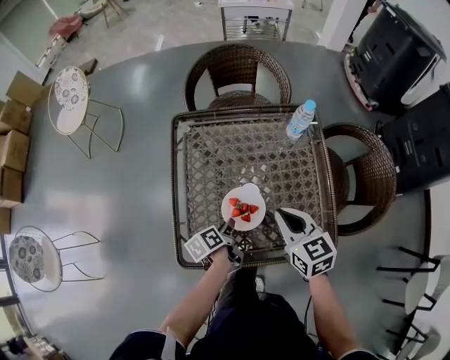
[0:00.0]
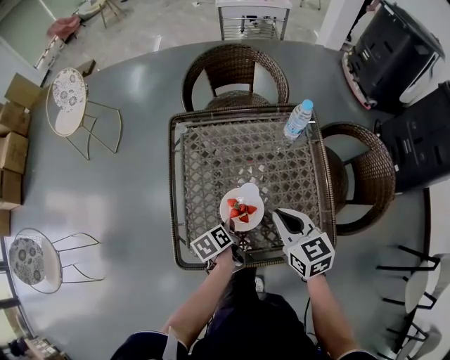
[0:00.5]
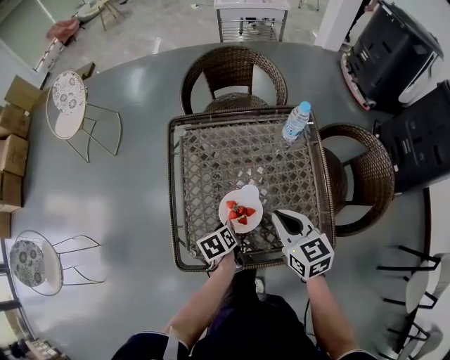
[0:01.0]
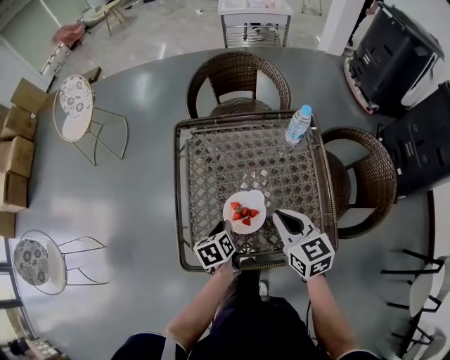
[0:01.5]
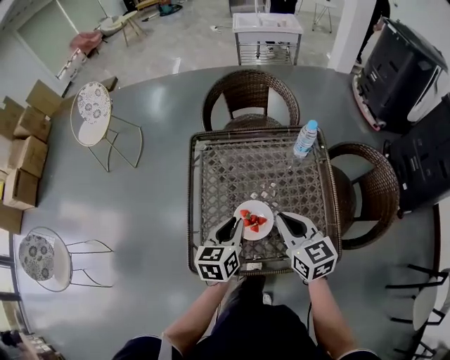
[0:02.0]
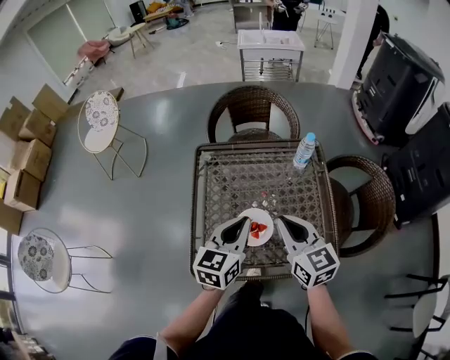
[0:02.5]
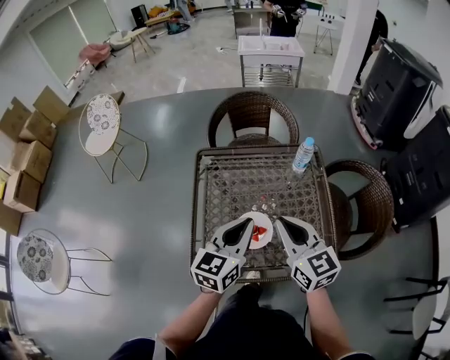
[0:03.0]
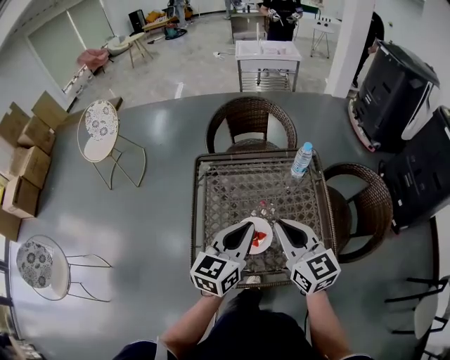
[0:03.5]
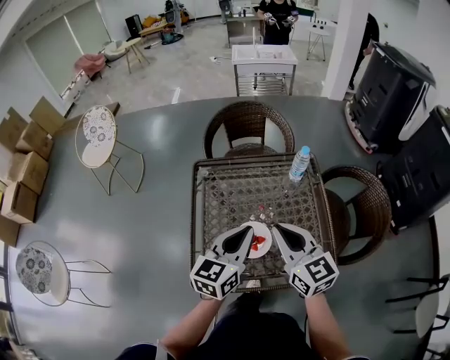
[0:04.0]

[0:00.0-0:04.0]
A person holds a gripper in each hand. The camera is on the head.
0:00.0 to 0:02.0: The left gripper goes approximately 15 cm upward, and rolls clockwise, seen from behind, by roughly 50 degrees.
0:02.0 to 0:04.0: The two grippers go about 10 cm upward. The left gripper turns by about 20 degrees.

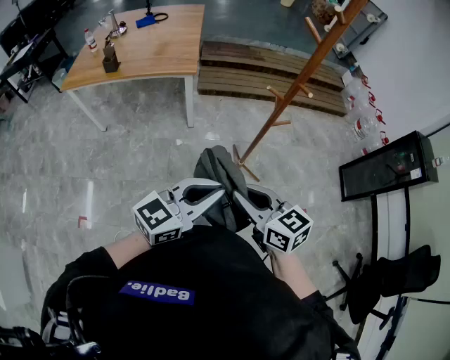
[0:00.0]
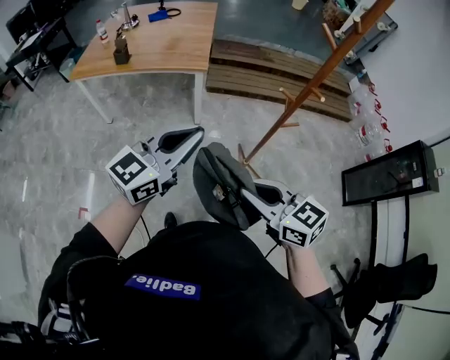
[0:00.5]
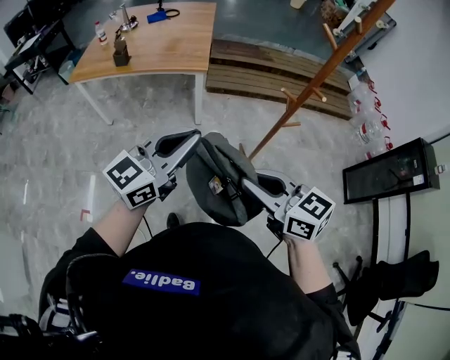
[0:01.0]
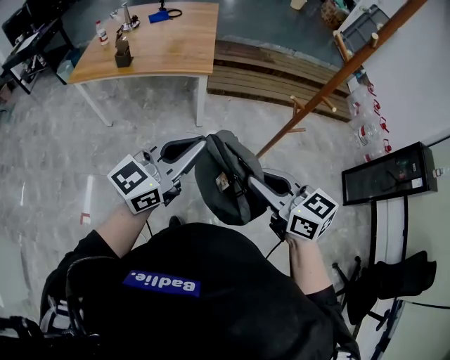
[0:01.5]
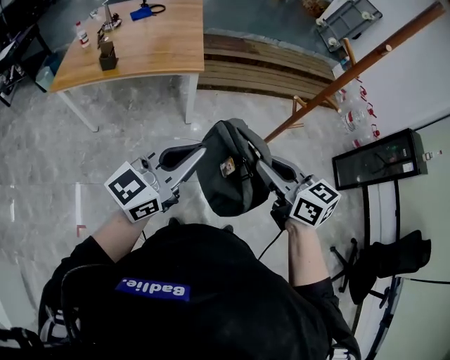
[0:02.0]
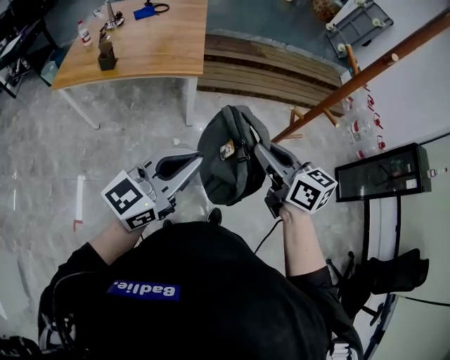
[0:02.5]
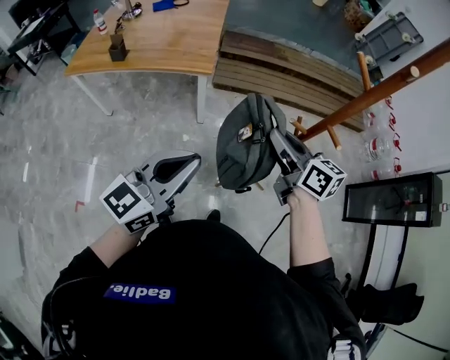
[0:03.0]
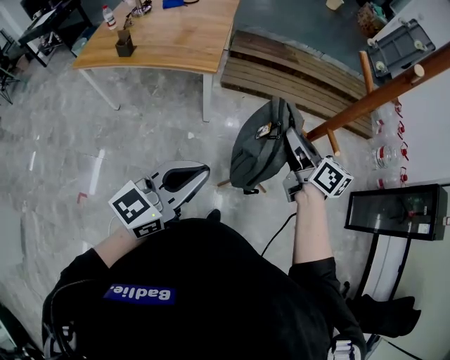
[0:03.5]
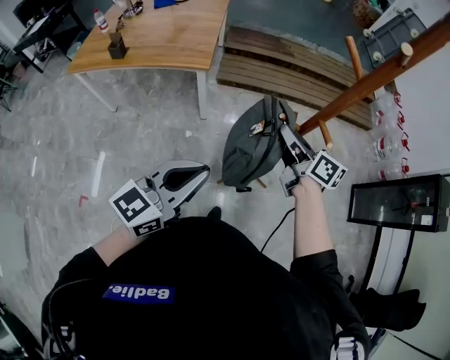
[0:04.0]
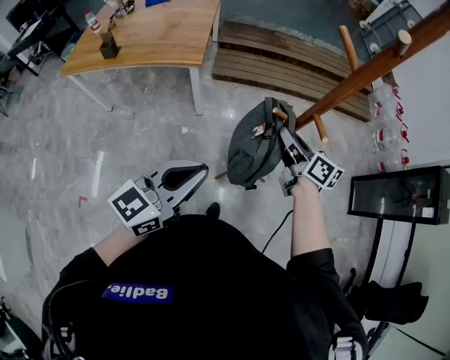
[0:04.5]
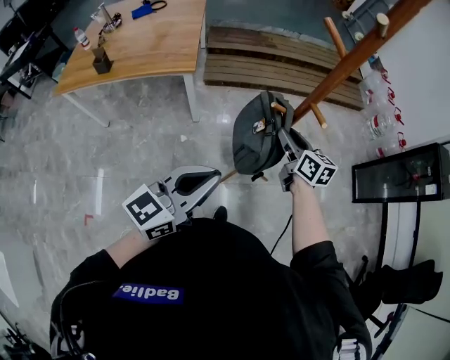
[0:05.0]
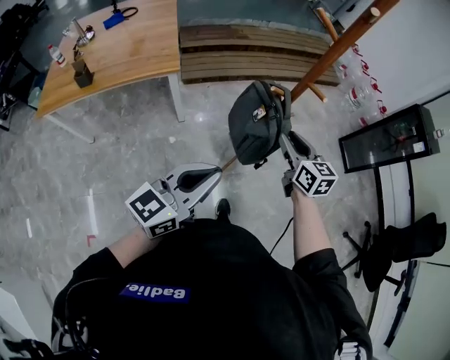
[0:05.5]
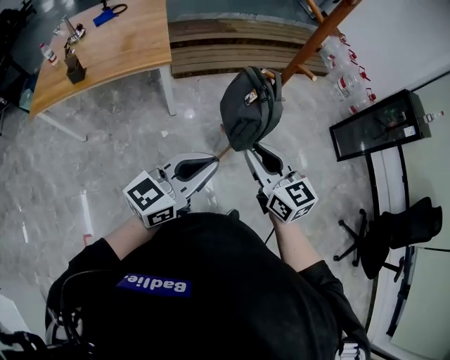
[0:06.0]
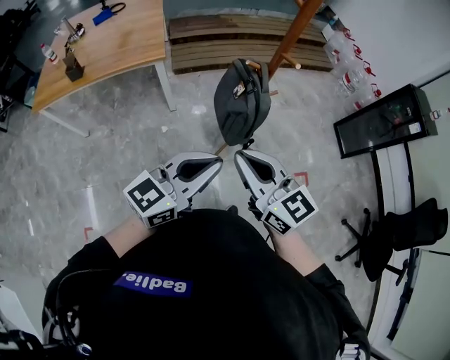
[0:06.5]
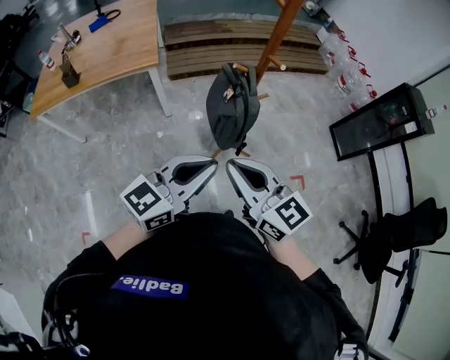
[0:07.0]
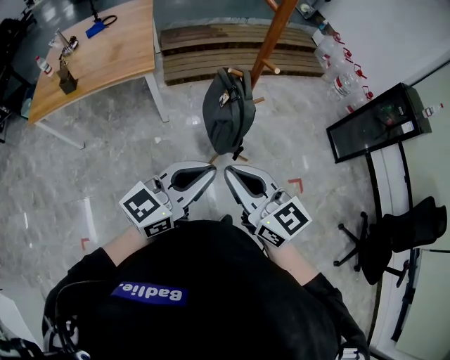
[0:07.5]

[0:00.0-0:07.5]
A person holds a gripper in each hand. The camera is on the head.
0:00.0 to 0:02.0: The right gripper goes some 15 cm forward, to the left and upward; the left gripper travels to the left and forward by approximately 20 cm.
0:02.0 to 0:04.0: The right gripper travels forward and to the right by about 30 cm, and swivels approximately 30 degrees; the left gripper shifts approximately 20 cm to the right.
0:04.0 to 0:05.5: The right gripper heads backward, covering approximately 10 cm, and rotates some 40 degrees. Meanwhile the left gripper heads backward, covering about 5 cm.
0:05.5 to 0:07.5: The right gripper heads backward and upward, covering some 20 cm, turns by roughly 30 degrees, and closes its fingers, while the left gripper moves to the right, roughly 10 cm.

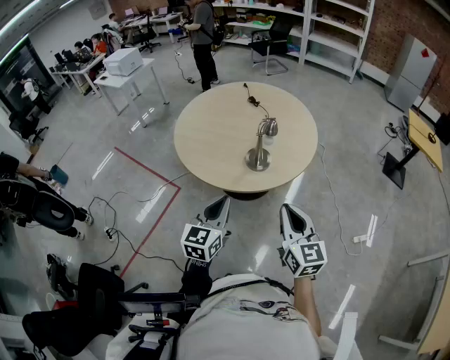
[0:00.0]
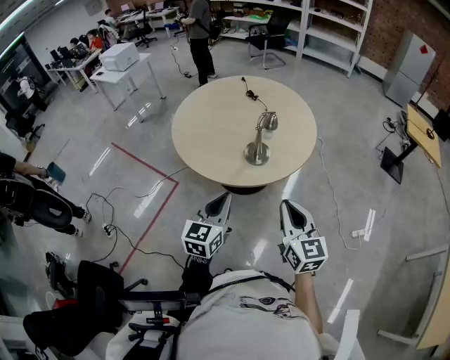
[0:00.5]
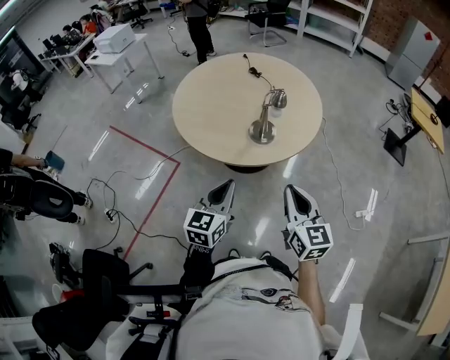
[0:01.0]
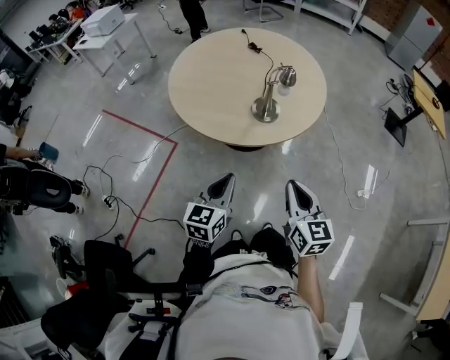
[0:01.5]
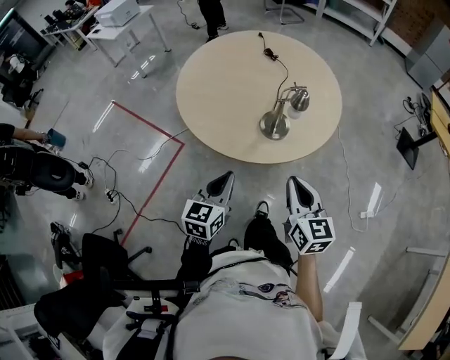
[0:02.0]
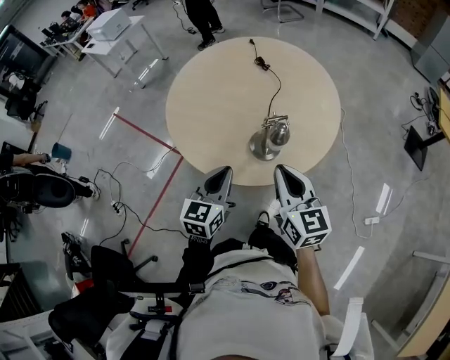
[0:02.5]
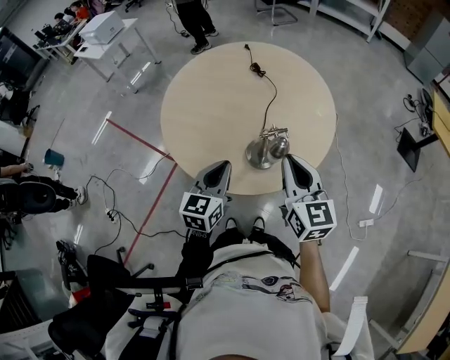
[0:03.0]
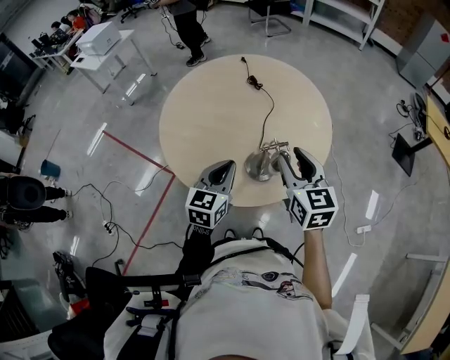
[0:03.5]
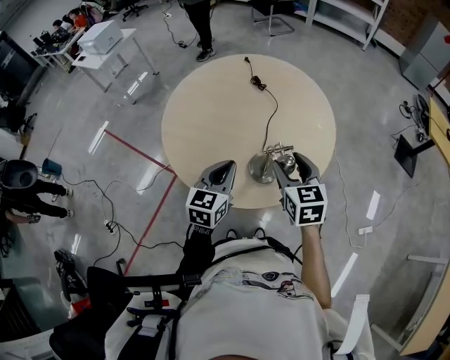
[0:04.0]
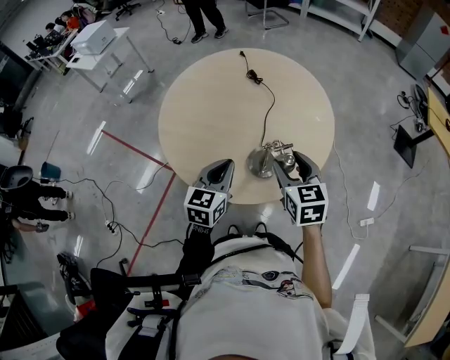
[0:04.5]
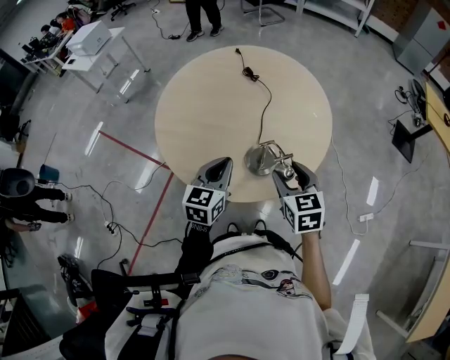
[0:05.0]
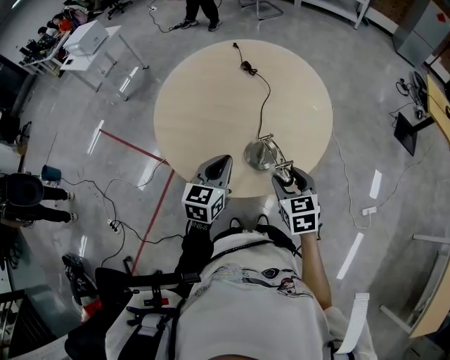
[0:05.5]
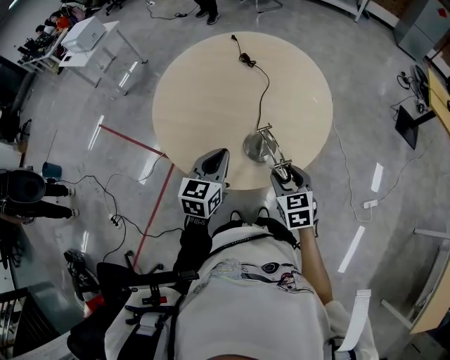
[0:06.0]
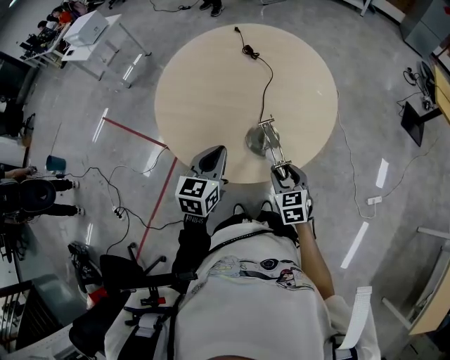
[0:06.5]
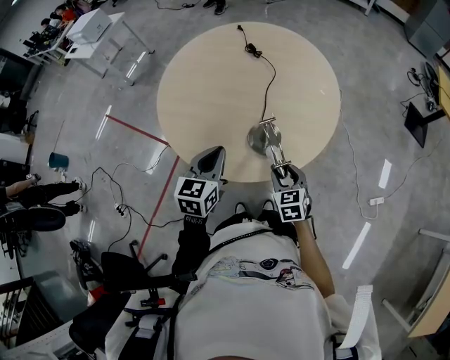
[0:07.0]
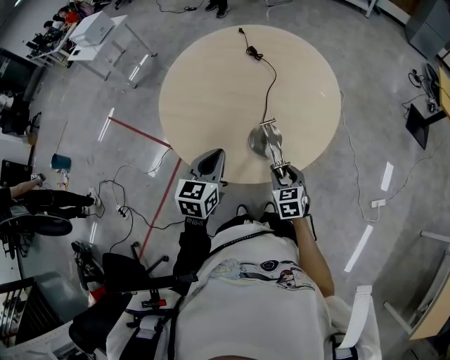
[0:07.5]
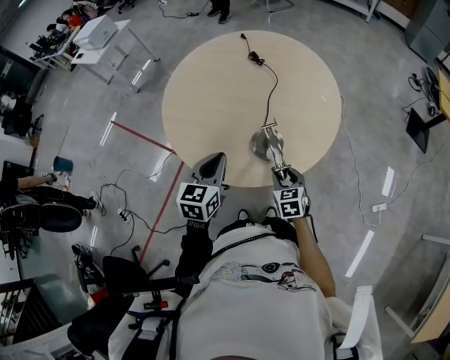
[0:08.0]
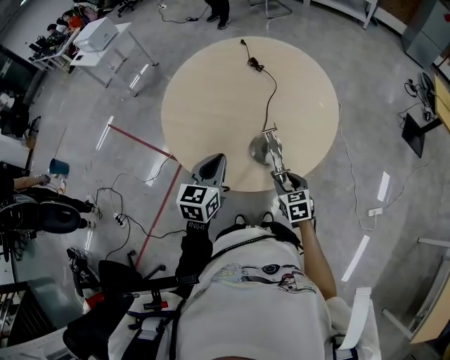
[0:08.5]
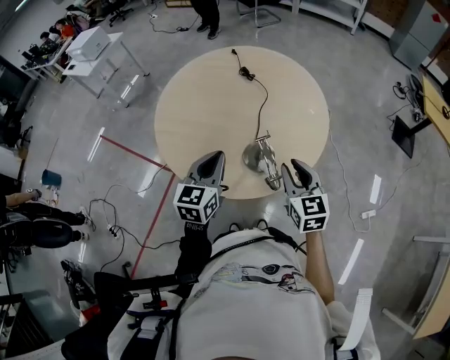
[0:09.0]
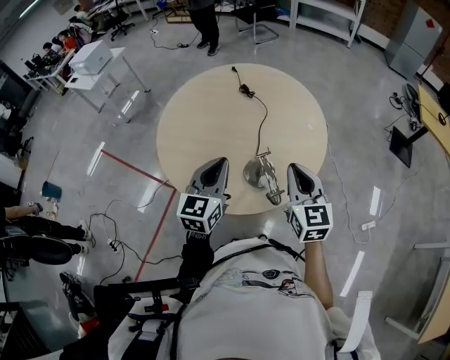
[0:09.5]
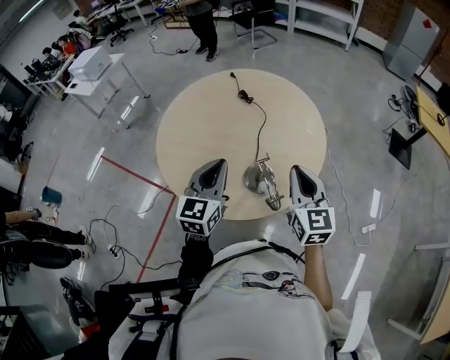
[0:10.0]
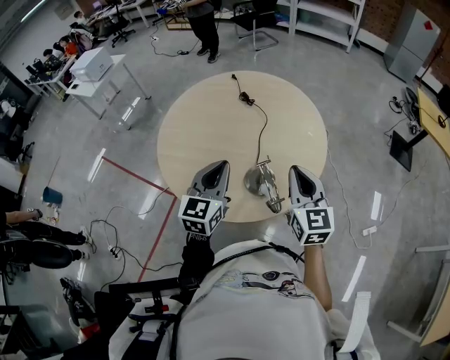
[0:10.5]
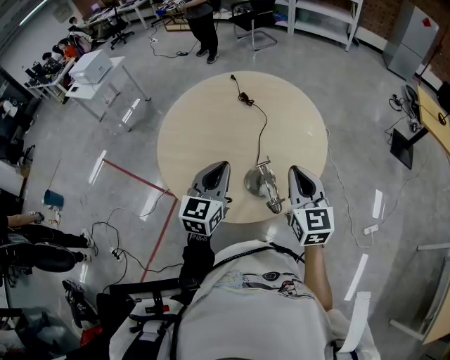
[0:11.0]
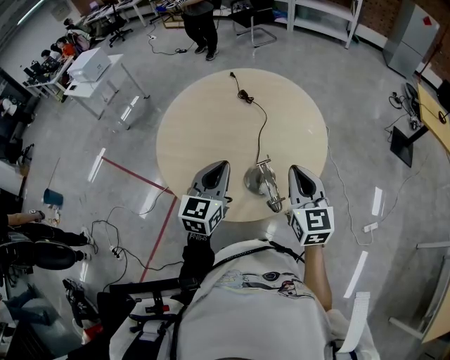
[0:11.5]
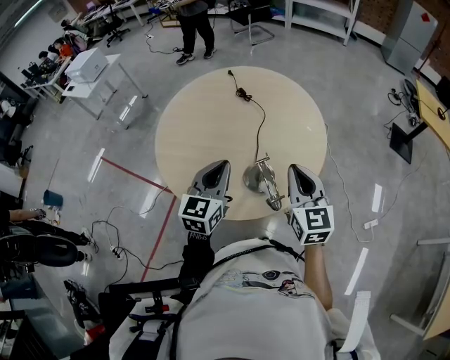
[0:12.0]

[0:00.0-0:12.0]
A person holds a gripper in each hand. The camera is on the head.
0:00.0 to 0:02.0: The right gripper heads forward and downward, covering about 10 cm. Meanwhile the left gripper shifts about 10 cm downward and forward.
0:02.0 to 0:04.0: Both grippers move forward, some 25 cm. The right gripper opens up.
0:04.0 to 0:06.0: The right gripper moves downward and backward, approximately 15 cm.
0:06.0 to 0:08.0: The right gripper goes roughly 10 cm downward.
0:08.0 to 0:10.0: The right gripper goes some 25 cm upward, tips its fingers upward by roughly 30 degrees, and closes its fingers. Meanwhile the left gripper heads upward and forward, covering about 10 cm.
0:10.0 to 0:12.0: The grippers move only a little.

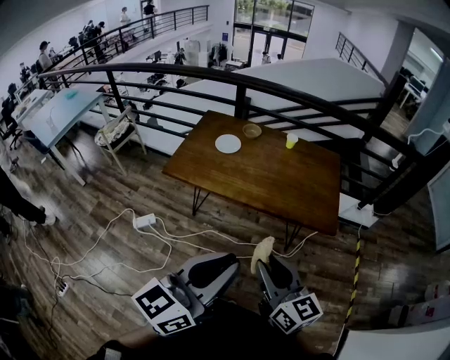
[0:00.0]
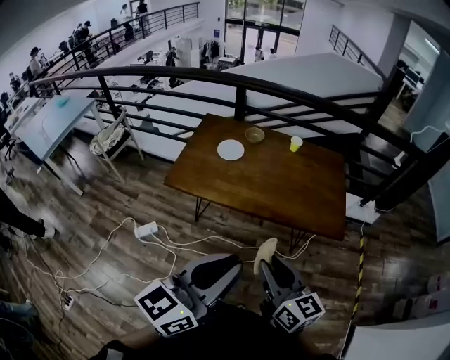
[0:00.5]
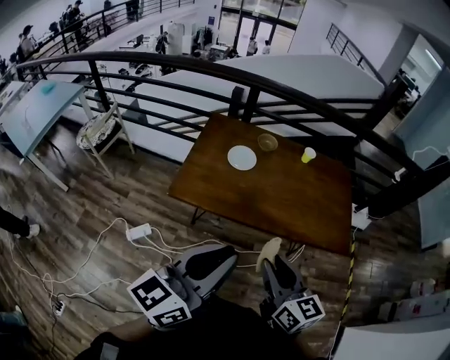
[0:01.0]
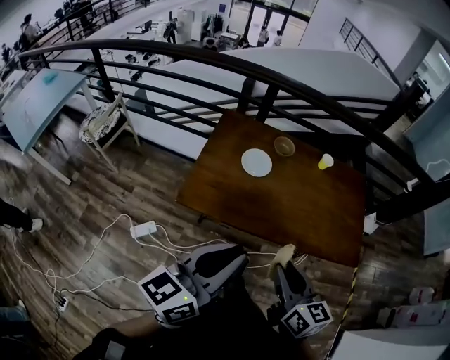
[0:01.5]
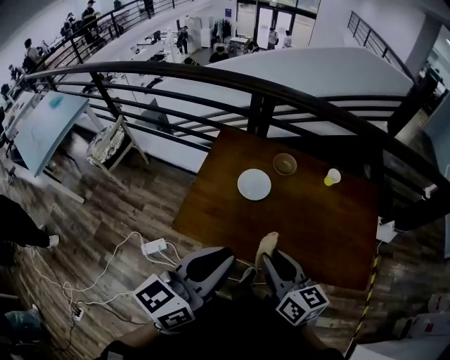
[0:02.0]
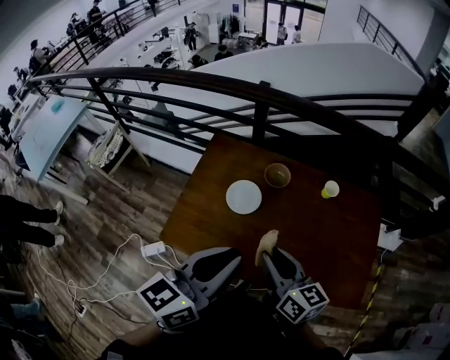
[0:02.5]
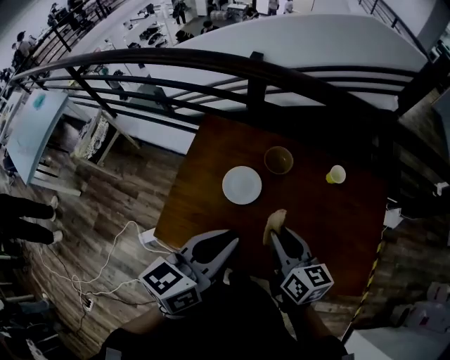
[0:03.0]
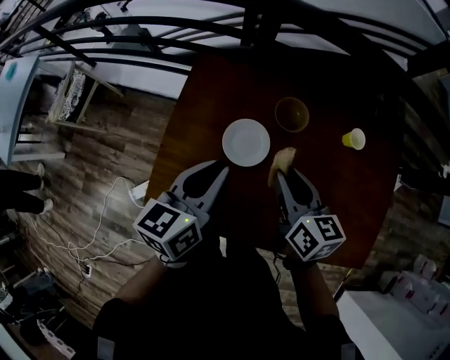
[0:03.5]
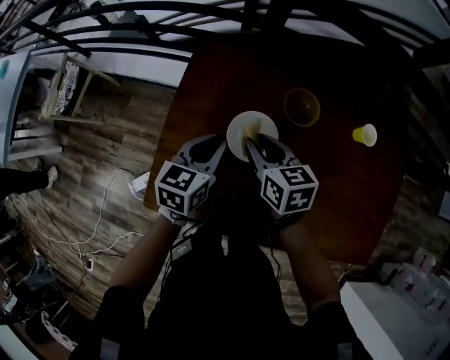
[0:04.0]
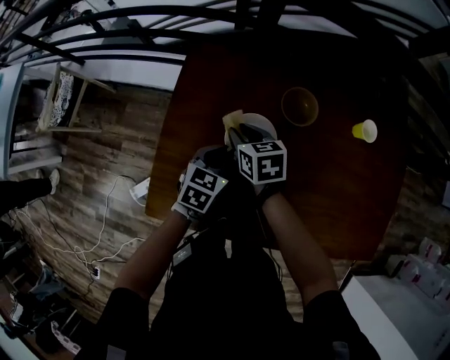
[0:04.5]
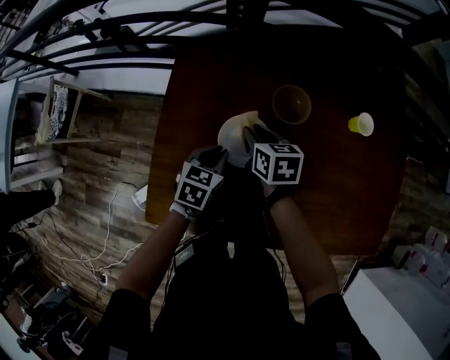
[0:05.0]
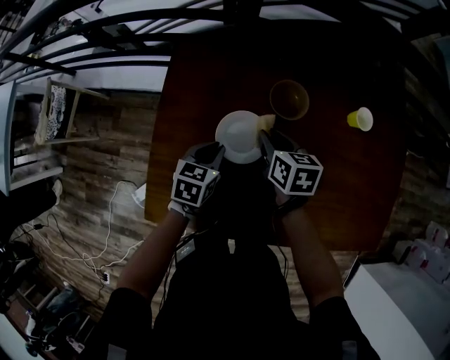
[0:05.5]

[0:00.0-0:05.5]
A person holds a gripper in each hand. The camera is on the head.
0:00.0 to 0:02.0: The two grippers travel together, forward and to the left, roughly 50 cm.
0:02.0 to 0:03.5: Both grippers move forward and downward, about 35 cm.
0:03.5 to 0:05.5: The right gripper goes approximately 20 cm downward and forward. Meanwhile the left gripper goes roughly 25 cm downward, and turns by about 30 degrees.
